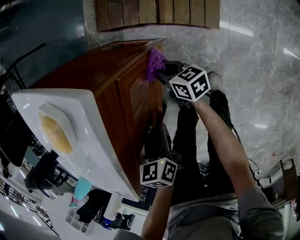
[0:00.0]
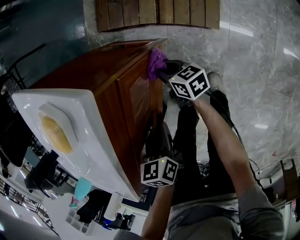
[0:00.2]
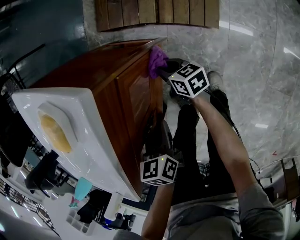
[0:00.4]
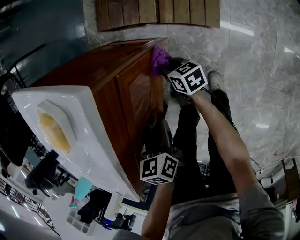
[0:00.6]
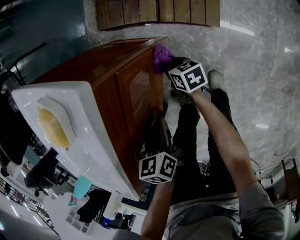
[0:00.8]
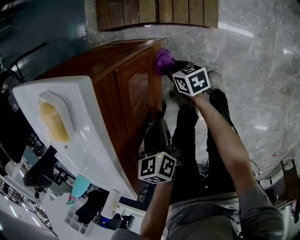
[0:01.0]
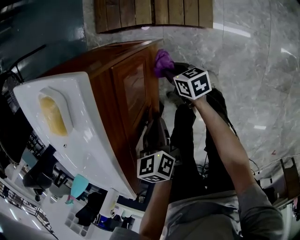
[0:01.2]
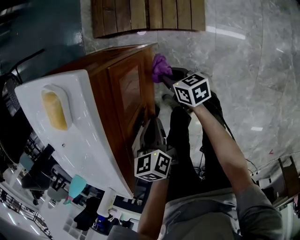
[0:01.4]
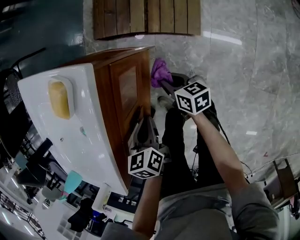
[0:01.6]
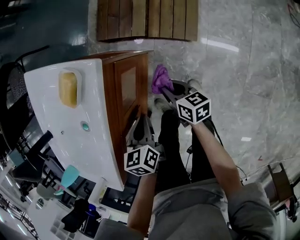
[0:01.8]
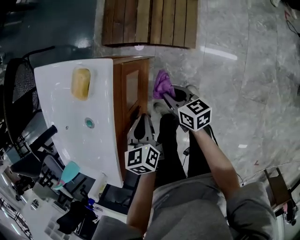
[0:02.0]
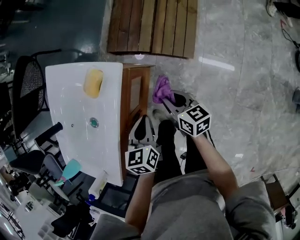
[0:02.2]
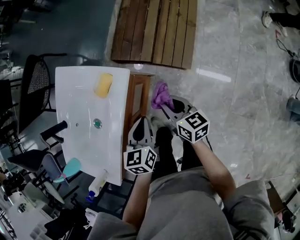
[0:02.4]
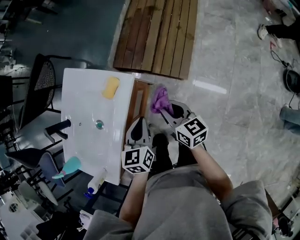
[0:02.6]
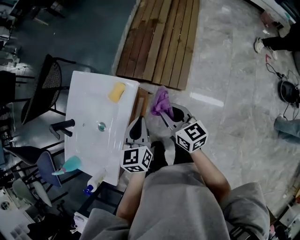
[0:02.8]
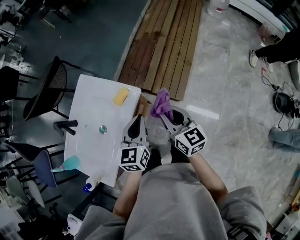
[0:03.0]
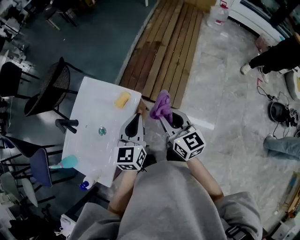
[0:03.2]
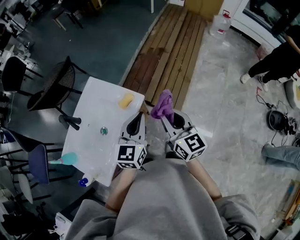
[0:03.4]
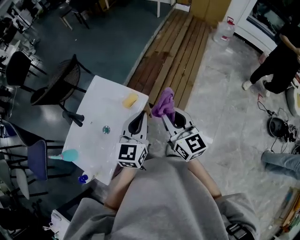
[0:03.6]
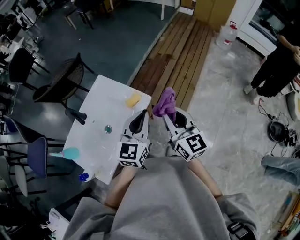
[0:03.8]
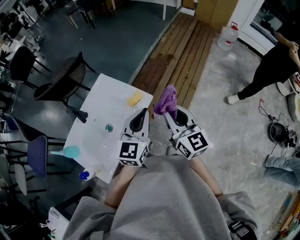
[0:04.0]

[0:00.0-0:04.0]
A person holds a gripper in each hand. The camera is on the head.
0:00.0 to 0:01.4: The right gripper heads backward, covering about 5 cm.
0:01.4 to 0:02.6: The grippers both shift upward by roughly 30 cm. The right gripper rotates roughly 30 degrees; the left gripper rotates some 20 degrees.
0:02.6 to 0:04.0: The two grippers go approximately 25 cm upward. The right gripper rotates roughly 30 degrees, while the left gripper swivels roughly 30 degrees.

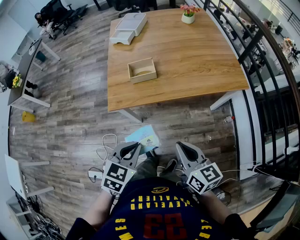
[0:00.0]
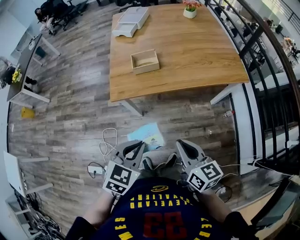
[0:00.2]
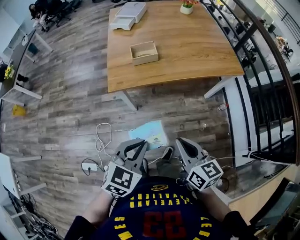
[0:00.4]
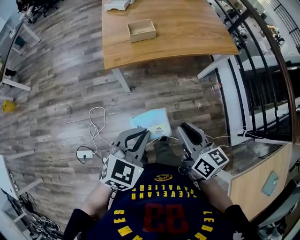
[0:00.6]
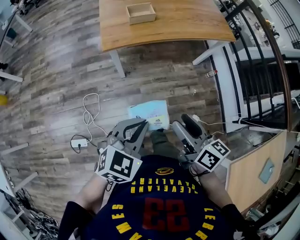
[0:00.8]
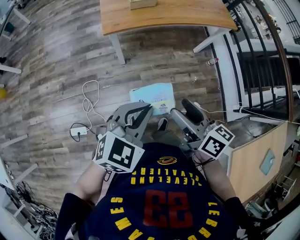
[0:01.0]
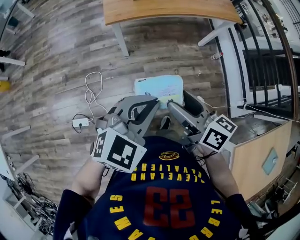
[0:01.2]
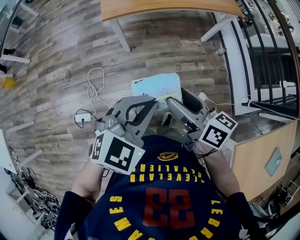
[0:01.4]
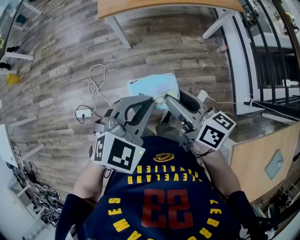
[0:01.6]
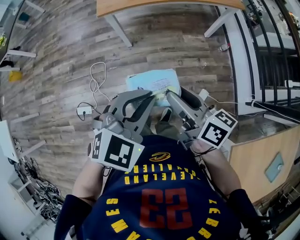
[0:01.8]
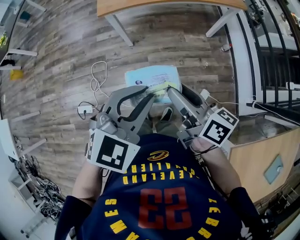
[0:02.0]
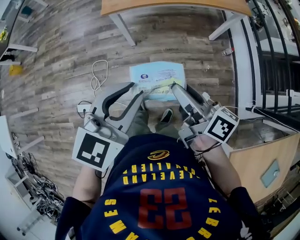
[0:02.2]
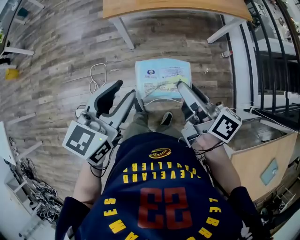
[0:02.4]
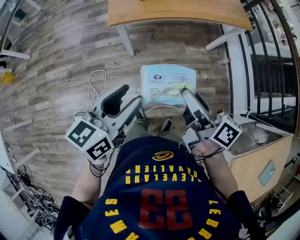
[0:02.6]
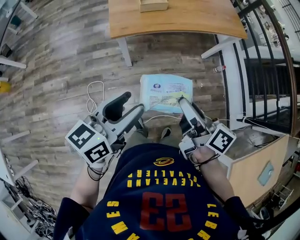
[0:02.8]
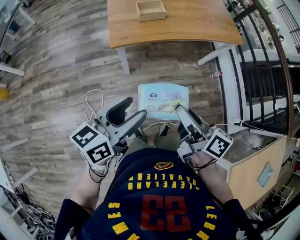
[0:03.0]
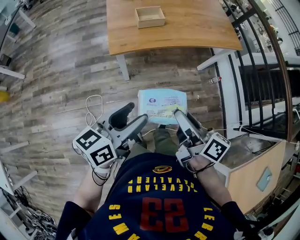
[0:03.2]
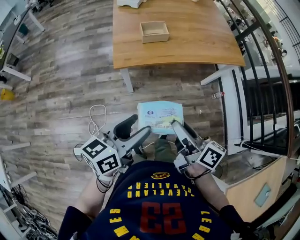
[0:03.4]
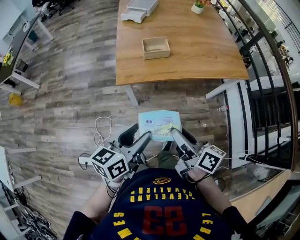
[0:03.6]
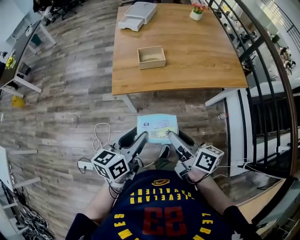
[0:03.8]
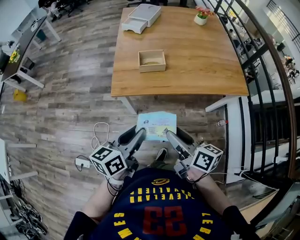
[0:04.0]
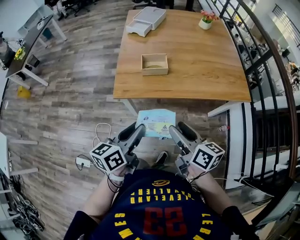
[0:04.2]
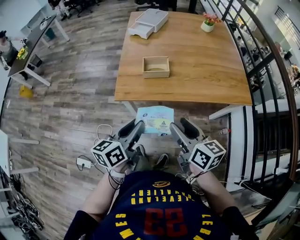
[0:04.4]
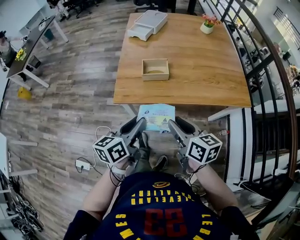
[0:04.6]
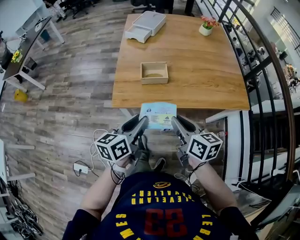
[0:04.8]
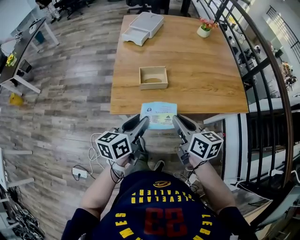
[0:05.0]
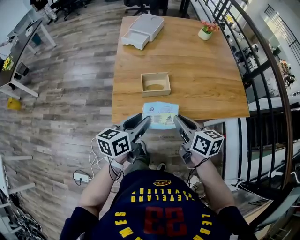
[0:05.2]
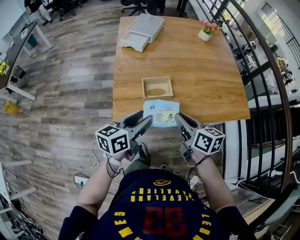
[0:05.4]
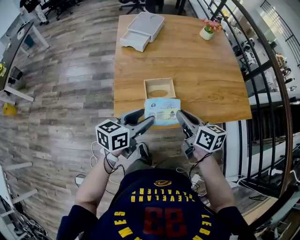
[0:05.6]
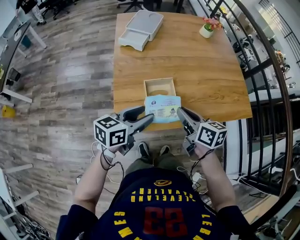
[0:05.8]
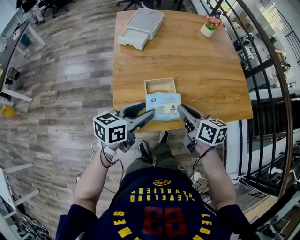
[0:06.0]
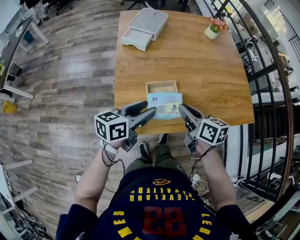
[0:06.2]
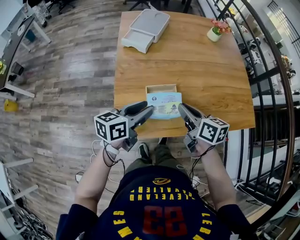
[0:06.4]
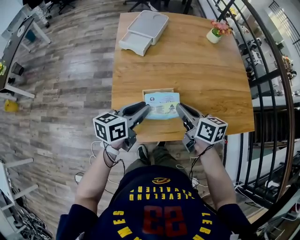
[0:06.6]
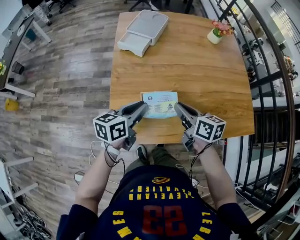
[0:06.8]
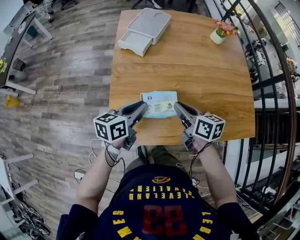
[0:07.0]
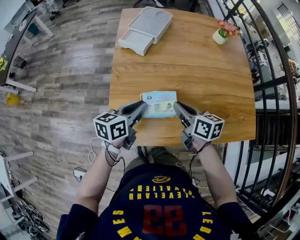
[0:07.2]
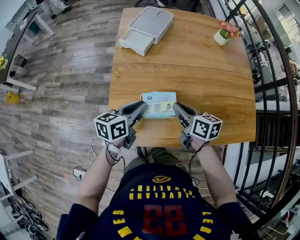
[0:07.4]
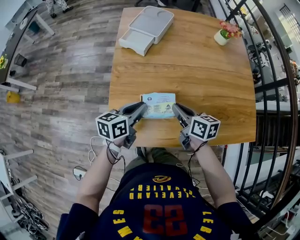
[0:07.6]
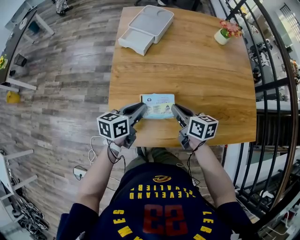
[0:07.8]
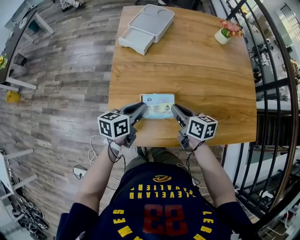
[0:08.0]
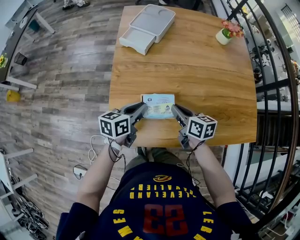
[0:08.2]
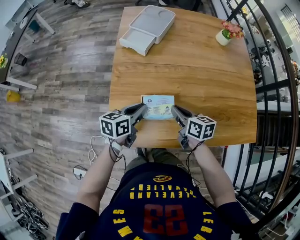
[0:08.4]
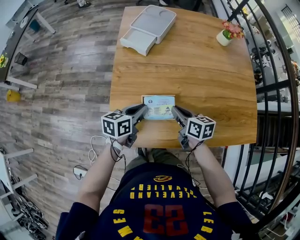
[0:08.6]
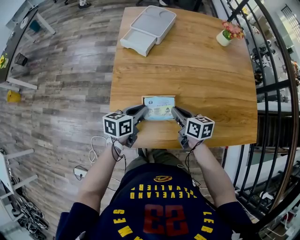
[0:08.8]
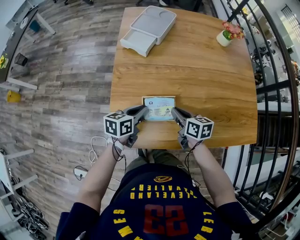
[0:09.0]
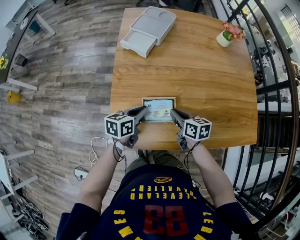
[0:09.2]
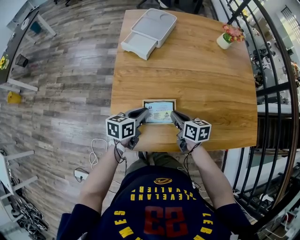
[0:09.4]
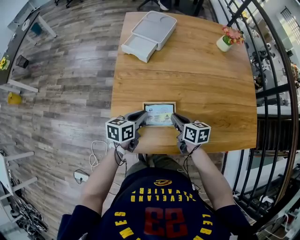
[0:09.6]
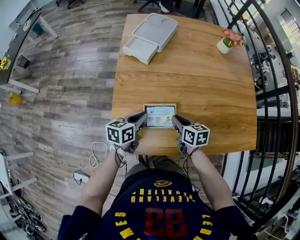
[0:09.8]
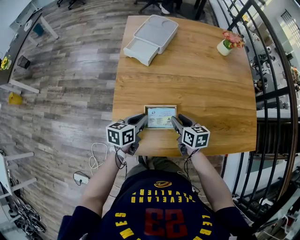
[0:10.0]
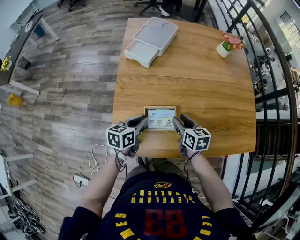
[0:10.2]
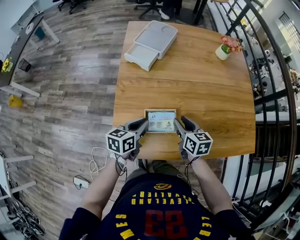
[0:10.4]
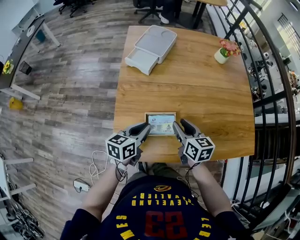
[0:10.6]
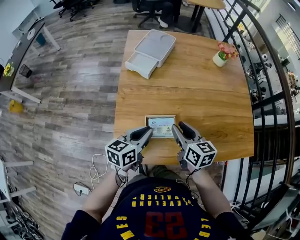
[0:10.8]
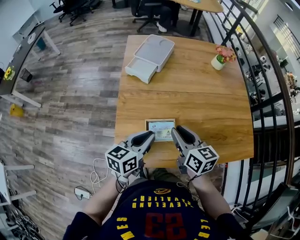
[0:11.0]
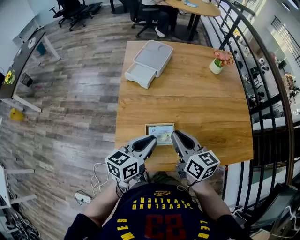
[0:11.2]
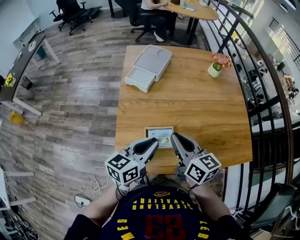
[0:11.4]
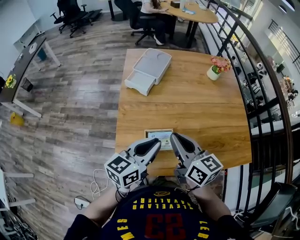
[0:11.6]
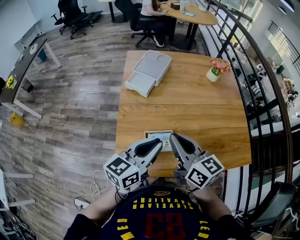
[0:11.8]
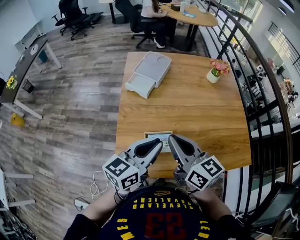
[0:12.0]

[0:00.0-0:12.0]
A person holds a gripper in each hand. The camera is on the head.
0:00.0 to 0:01.6: Both grippers move backward, some 30 cm. The right gripper opens its fingers. The left gripper swivels roughly 20 degrees.
0:01.6 to 0:03.0: The left gripper moves to the left and forward, roughly 25 cm, twists some 50 degrees counterclockwise, seen from behind, and opens up, while the right gripper goes some 15 cm forward and to the left.
0:03.0 to 0:04.4: Both grippers move forward and to the right, roughly 20 cm. The right gripper turns by roughly 30 degrees. The left gripper rotates approximately 30 degrees, and closes.
0:04.4 to 0:06.0: Both grippers move forward, about 25 cm. The left gripper turns by approximately 30 degrees, and opens up. The right gripper closes up.
0:06.0 to 0:07.6: The grippers both shift forward and downward by some 15 cm. The left gripper closes.
0:07.6 to 0:09.0: The grippers both shift downward by about 5 cm.
0:09.0 to 0:10.4: The right gripper opens its fingers.
0:10.4 to 0:12.0: Both grippers travel together upward, about 20 cm. The left gripper rotates roughly 30 degrees. Meanwhile the right gripper swivels some 30 degrees, and closes its fingers.

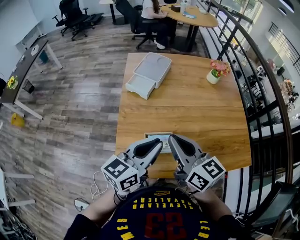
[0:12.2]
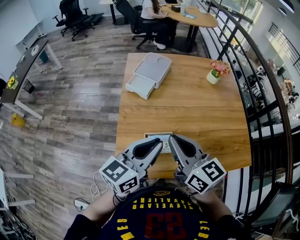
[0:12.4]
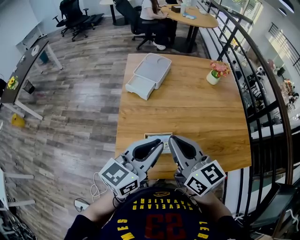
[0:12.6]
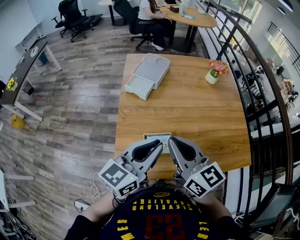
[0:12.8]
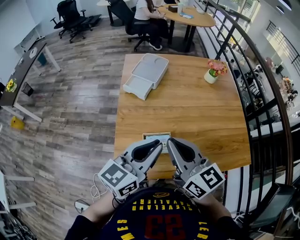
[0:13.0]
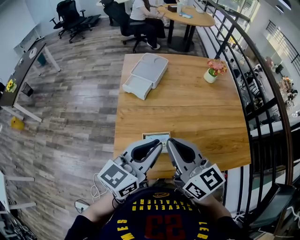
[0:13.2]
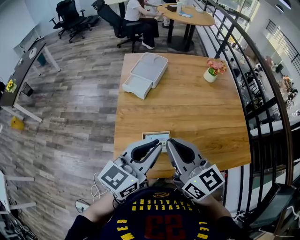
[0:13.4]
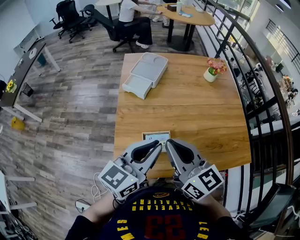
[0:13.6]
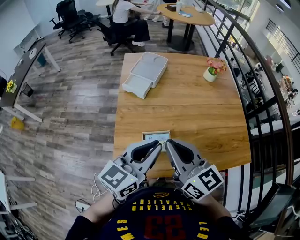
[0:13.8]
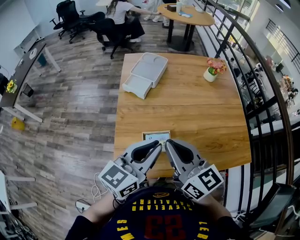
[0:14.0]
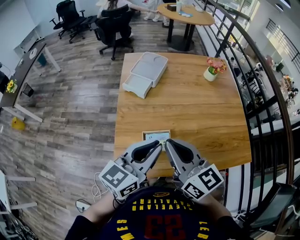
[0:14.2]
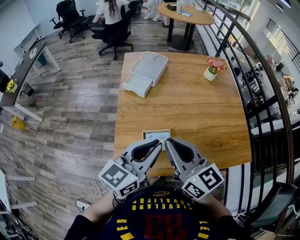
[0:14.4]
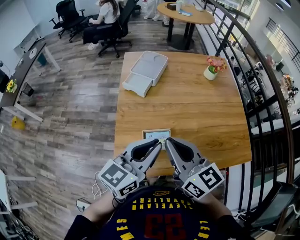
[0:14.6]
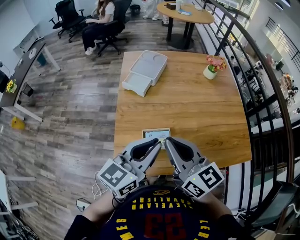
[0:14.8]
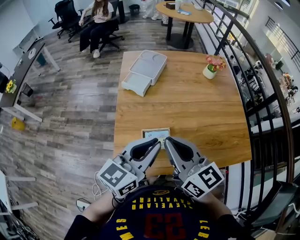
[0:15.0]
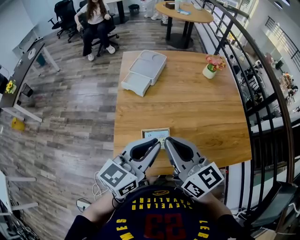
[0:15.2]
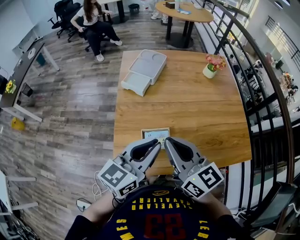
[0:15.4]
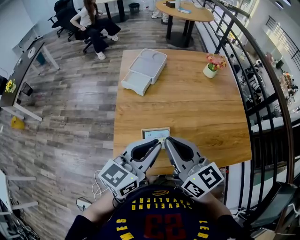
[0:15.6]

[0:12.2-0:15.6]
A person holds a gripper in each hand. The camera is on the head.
0:12.2 to 0:13.8: The grippers make only small movements.
0:13.8 to 0:15.6: Neither gripper changes place.

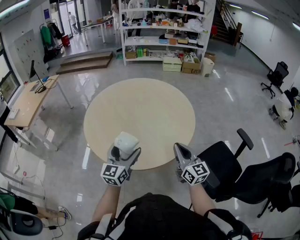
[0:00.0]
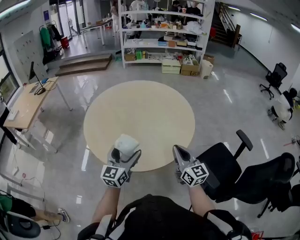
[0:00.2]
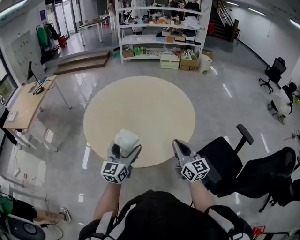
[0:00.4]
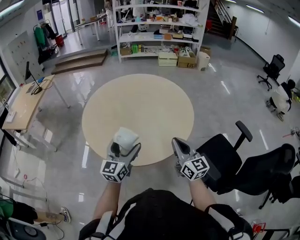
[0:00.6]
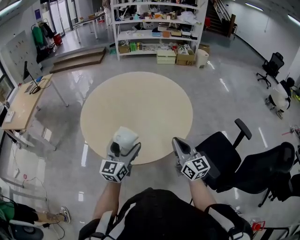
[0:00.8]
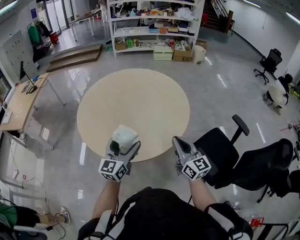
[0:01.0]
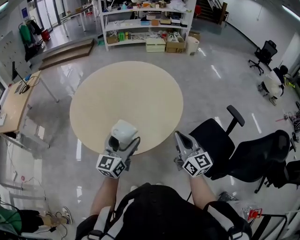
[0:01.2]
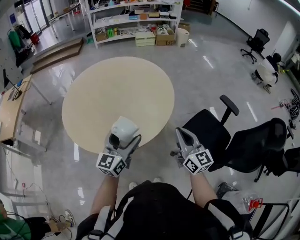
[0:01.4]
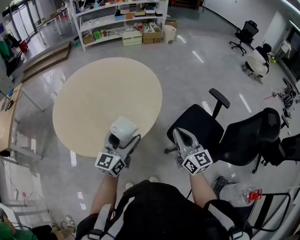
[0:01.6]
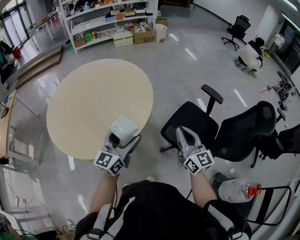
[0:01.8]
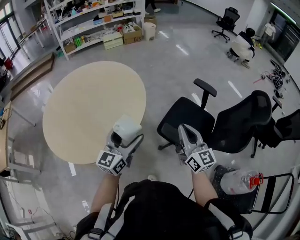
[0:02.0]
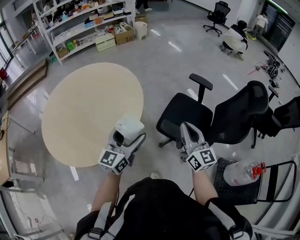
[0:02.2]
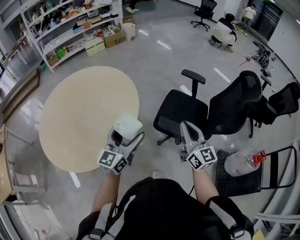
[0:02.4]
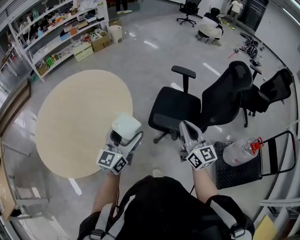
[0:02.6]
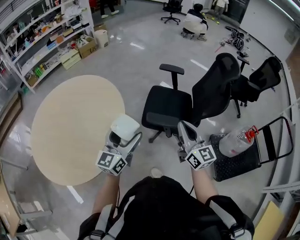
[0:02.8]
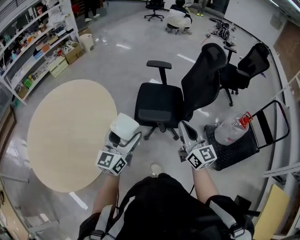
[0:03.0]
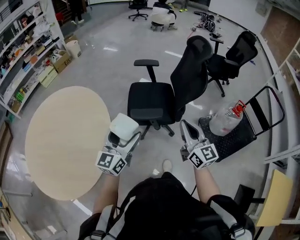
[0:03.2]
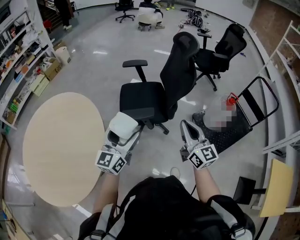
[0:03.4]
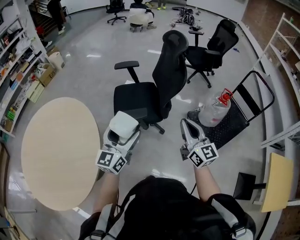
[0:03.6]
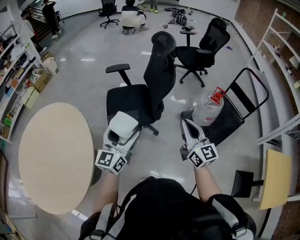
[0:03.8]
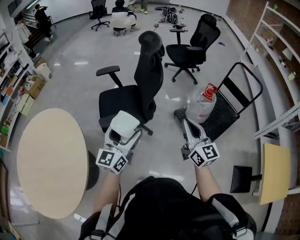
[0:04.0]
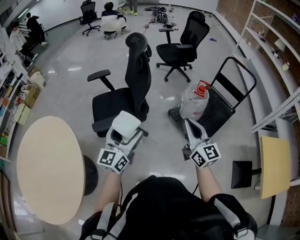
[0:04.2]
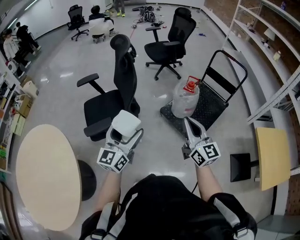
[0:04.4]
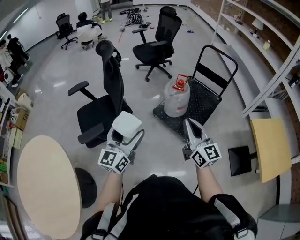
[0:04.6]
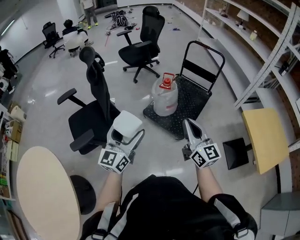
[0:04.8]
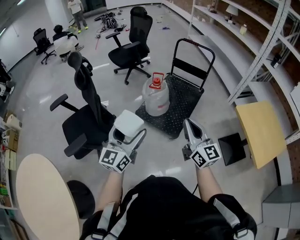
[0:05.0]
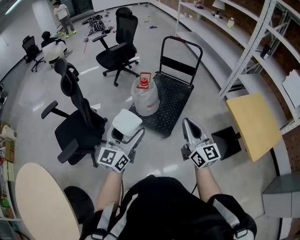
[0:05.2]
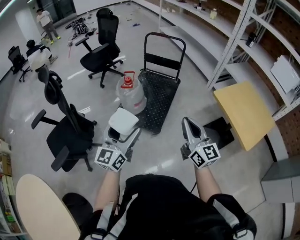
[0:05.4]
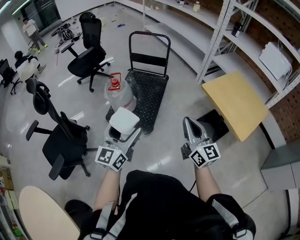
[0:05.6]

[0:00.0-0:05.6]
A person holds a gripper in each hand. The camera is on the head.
0:00.0 to 0:01.4: The left gripper is displaced to the right by some 10 cm; the right gripper heads to the right and backward, covering some 10 cm.
0:01.4 to 0:02.8: The right gripper changes place by approximately 20 cm, and rotates about 40 degrees. The left gripper shifts by roughly 15 cm, and rotates some 40 degrees.
0:02.8 to 0:04.2: The right gripper moves roughly 35 cm, and swivels roughly 30 degrees; the left gripper shifts by approximately 30 cm, and changes its angle by about 30 degrees.
0:04.2 to 0:05.6: The left gripper moves roughly 40 cm, and swivels some 40 degrees, while the right gripper moves roughly 40 cm, and changes its angle by about 40 degrees.
